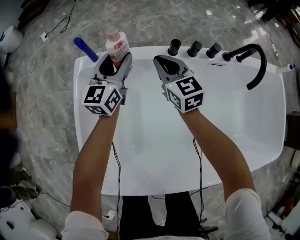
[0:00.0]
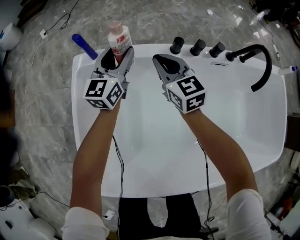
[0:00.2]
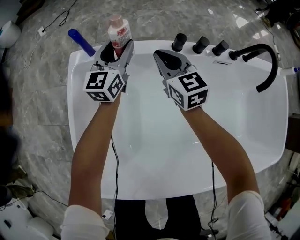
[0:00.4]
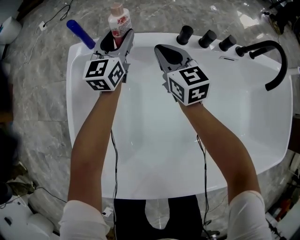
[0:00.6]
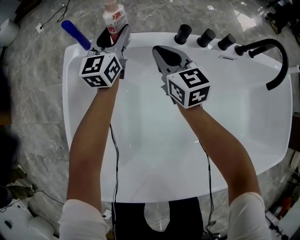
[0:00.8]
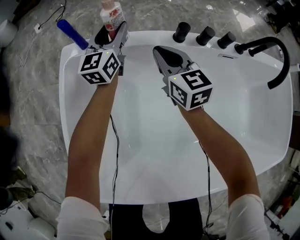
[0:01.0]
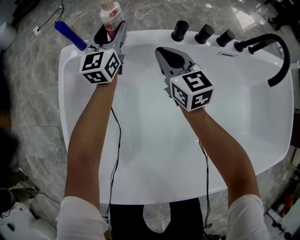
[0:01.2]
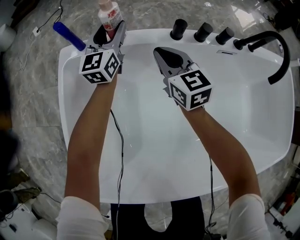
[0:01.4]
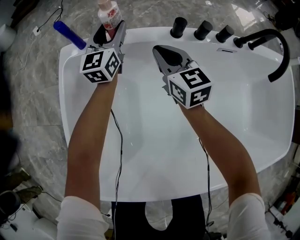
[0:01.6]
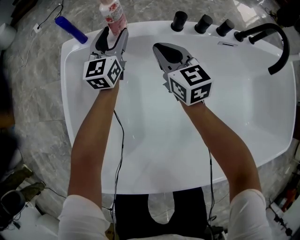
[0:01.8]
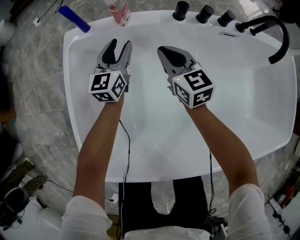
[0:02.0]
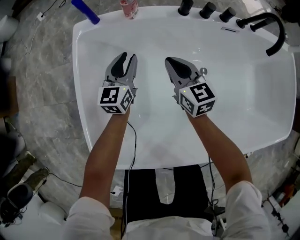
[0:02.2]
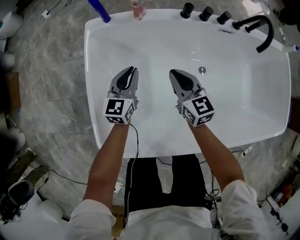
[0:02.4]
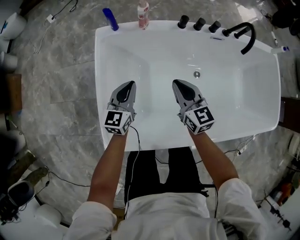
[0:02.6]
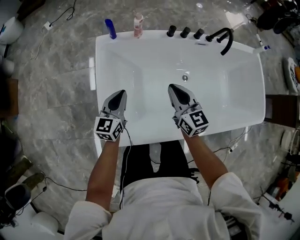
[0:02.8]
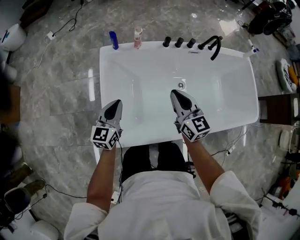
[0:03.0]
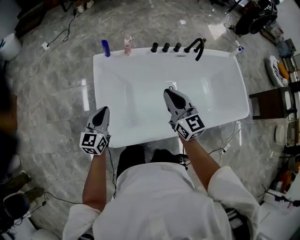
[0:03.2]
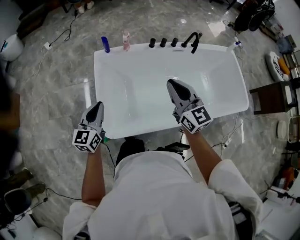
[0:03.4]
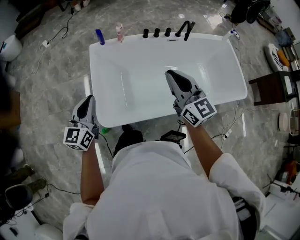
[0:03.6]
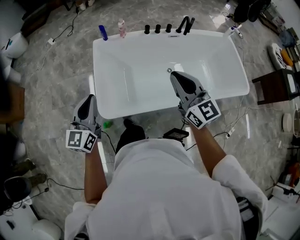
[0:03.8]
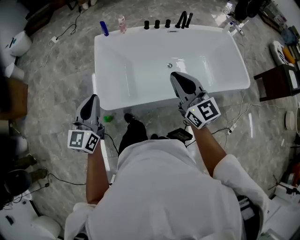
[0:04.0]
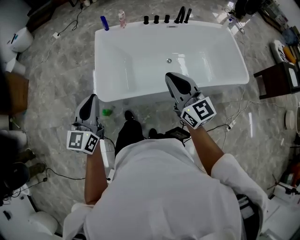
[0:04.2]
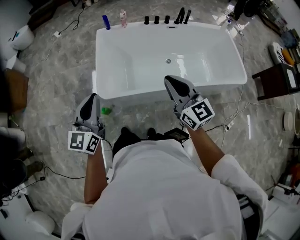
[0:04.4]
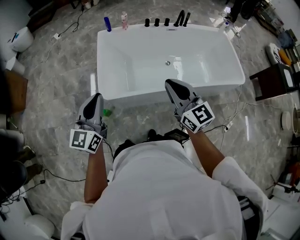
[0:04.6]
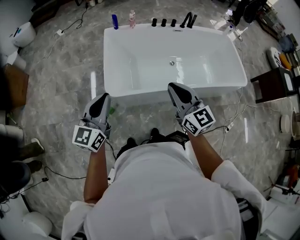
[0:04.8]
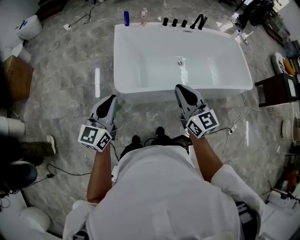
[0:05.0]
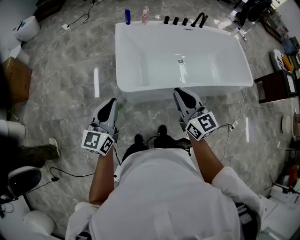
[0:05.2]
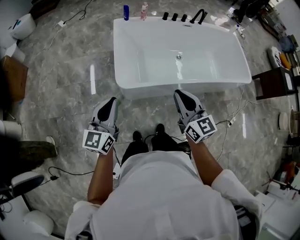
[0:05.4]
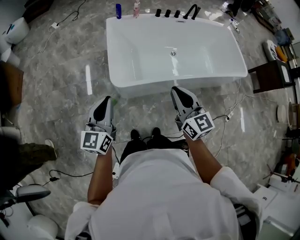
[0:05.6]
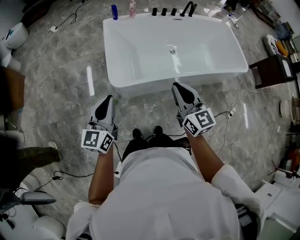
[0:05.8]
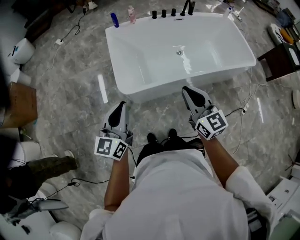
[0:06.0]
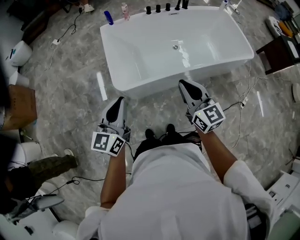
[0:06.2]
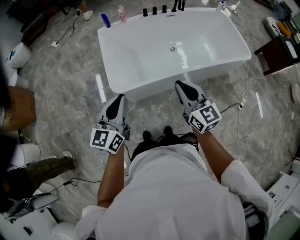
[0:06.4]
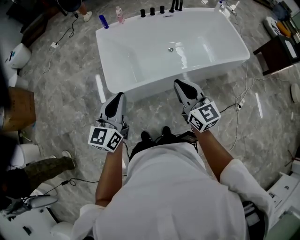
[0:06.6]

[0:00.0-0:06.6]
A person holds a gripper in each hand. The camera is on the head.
0:00.0 to 0:01.6: The right gripper goes approximately 5 cm downward. Meanwhile the left gripper goes roughly 10 cm forward and downward.
0:01.6 to 0:03.2: Both grippers travel together backward and upward, about 50 cm. The left gripper closes.
0:03.2 to 0:05.0: The two grippers go about 40 cm backward.
0:05.0 to 0:06.6: The grippers both shift to the right by roughly 10 cm.

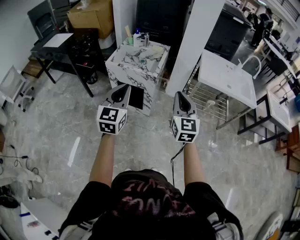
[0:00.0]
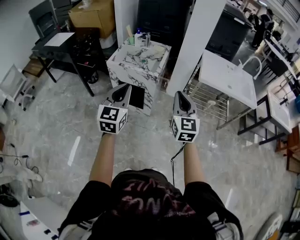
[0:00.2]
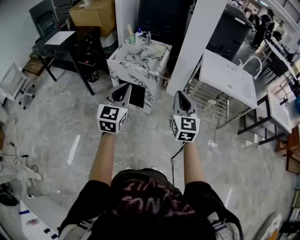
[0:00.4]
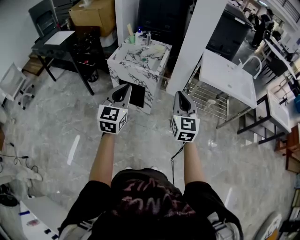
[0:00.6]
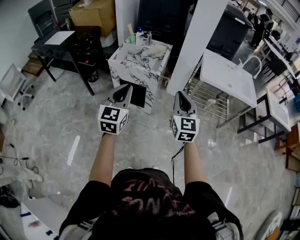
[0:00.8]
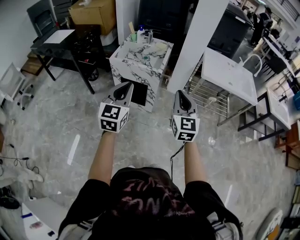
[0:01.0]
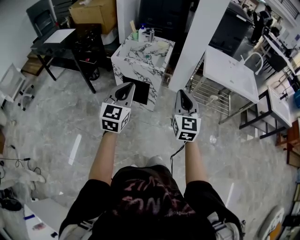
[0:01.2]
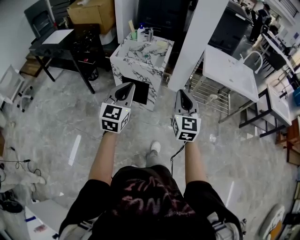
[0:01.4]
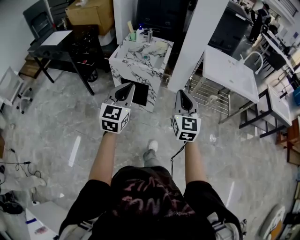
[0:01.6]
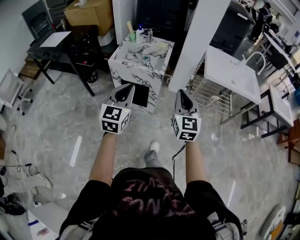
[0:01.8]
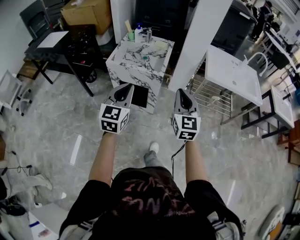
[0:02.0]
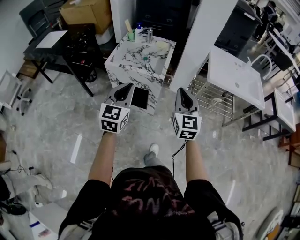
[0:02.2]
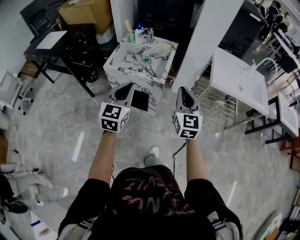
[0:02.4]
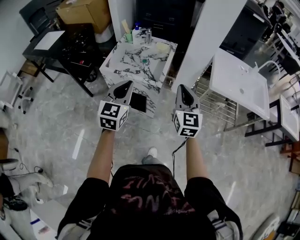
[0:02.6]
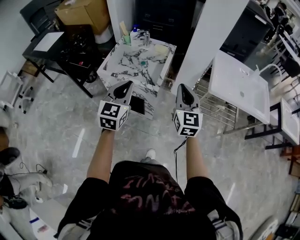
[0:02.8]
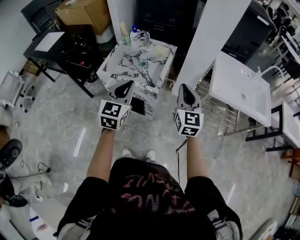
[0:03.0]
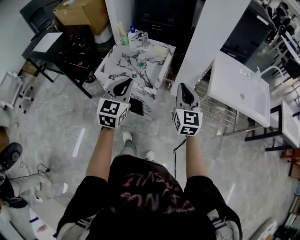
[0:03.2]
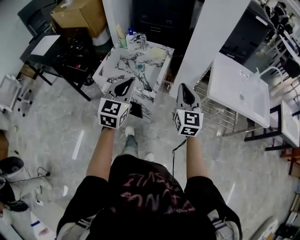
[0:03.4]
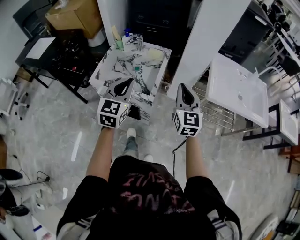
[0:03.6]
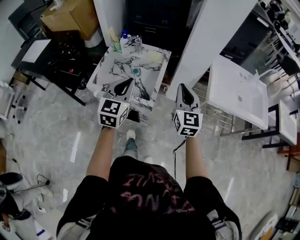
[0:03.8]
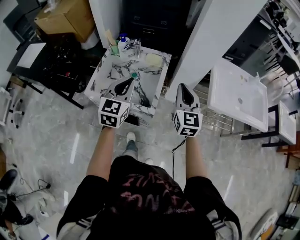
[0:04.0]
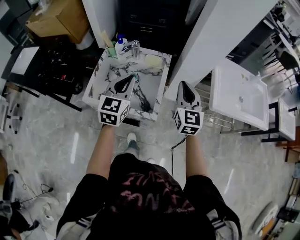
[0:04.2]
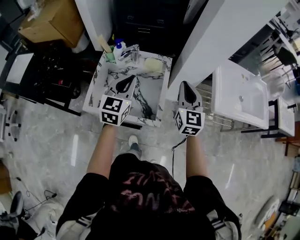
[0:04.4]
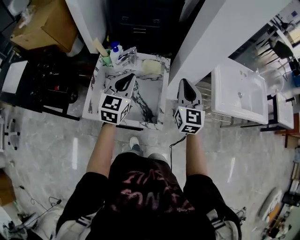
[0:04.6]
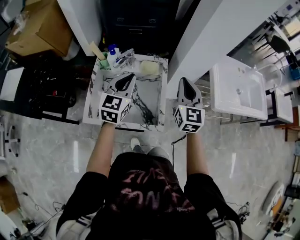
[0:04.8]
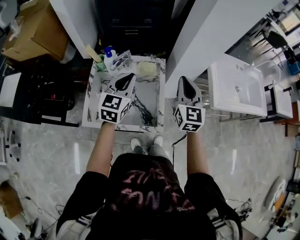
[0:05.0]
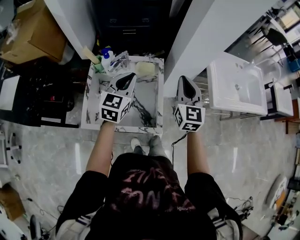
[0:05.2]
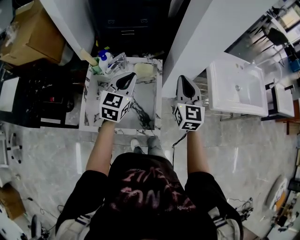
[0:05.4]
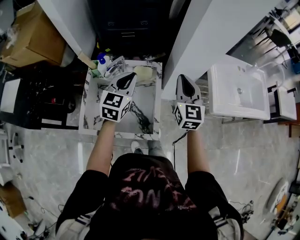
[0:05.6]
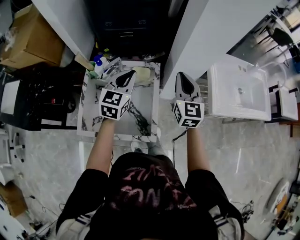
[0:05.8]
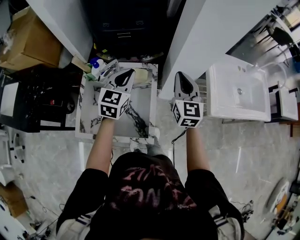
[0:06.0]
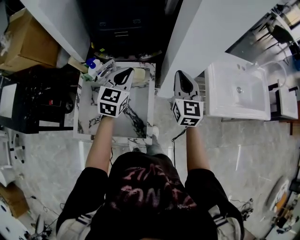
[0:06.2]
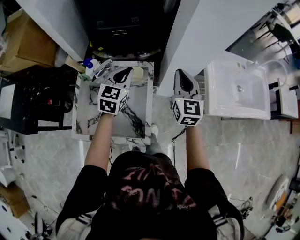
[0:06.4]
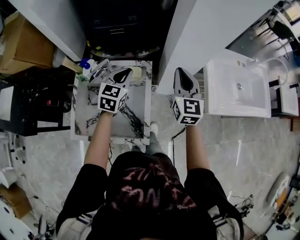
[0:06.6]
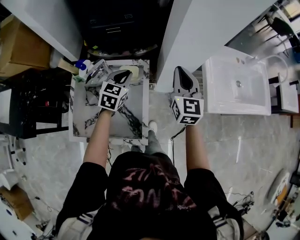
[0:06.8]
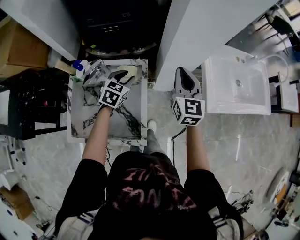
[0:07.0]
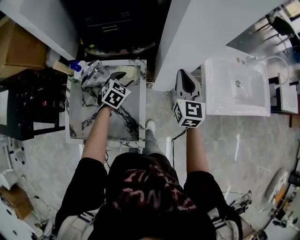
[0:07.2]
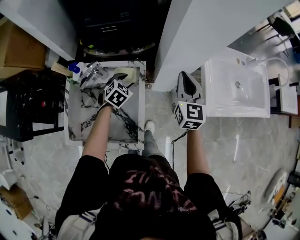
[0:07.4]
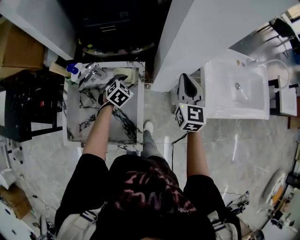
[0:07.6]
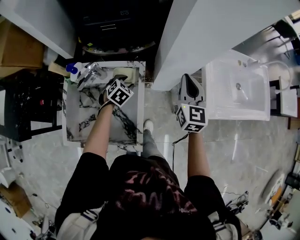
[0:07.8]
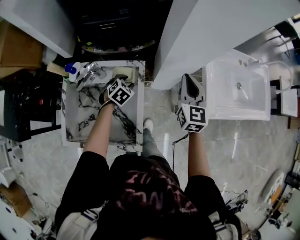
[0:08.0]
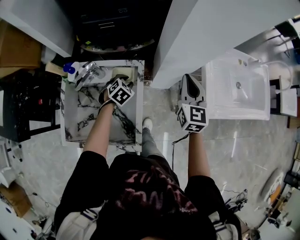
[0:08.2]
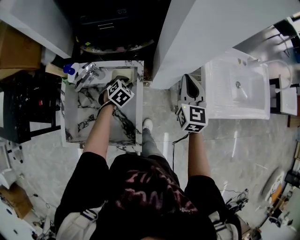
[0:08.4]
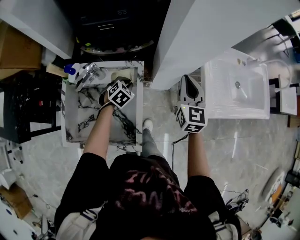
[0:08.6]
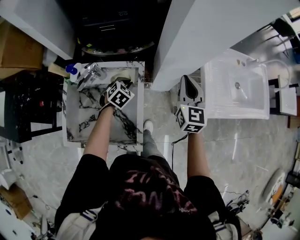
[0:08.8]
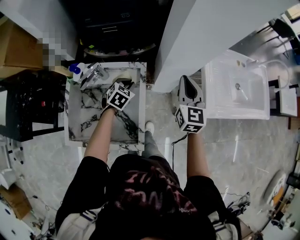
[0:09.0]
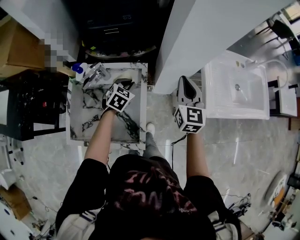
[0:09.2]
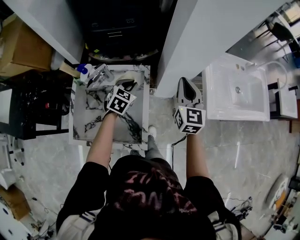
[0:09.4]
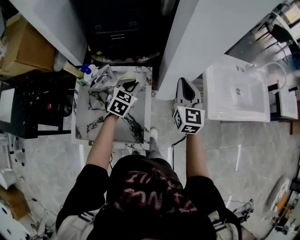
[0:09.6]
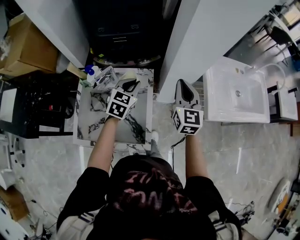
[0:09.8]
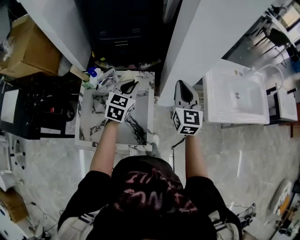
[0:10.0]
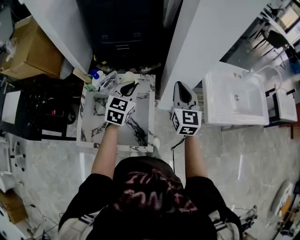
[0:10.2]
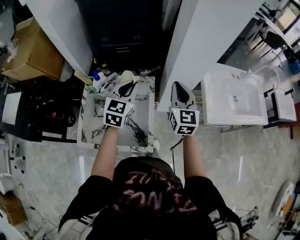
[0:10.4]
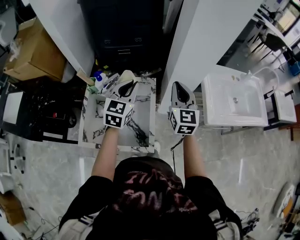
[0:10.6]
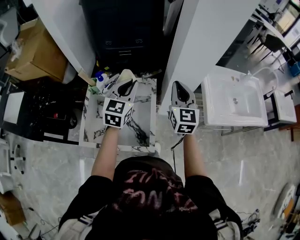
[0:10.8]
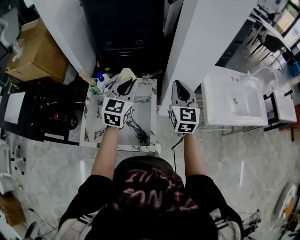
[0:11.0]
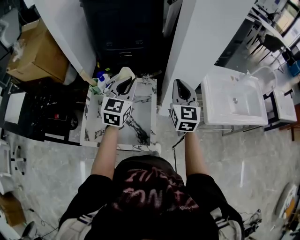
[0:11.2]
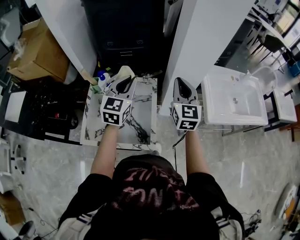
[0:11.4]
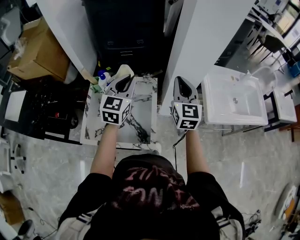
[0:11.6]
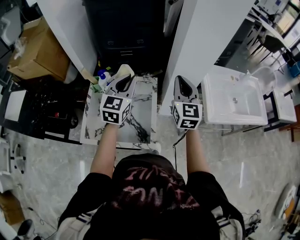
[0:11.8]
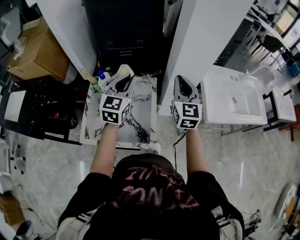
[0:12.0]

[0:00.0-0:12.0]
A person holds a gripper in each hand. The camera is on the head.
0:00.0 to 0:01.6: The left gripper moves approximately 5 cm; the right gripper goes roughly 5 cm to the left.
0:01.6 to 0:03.0: Both grippers move forward, approximately 30 cm.
0:03.0 to 0:04.4: The two grippers go some 25 cm forward.
0:04.4 to 0:06.0: Both grippers move forward, roughly 15 cm.
0:06.0 to 0:07.6: The left gripper heads downward, covering some 25 cm, points its fingers some 40 degrees further downward, and opens. Meanwhile the right gripper travels to the right, forward and downward by some 10 cm.
0:07.6 to 0:09.0: The left gripper closes.
0:09.0 to 0:10.4: The left gripper is displaced upward by roughly 25 cm, and angles its fingers upward, by approximately 30 degrees, while the right gripper moves upward, backward and to the left, roughly 10 cm.
0:10.4 to 0:12.0: The left gripper travels upward by approximately 5 cm. The right gripper ends up some 5 cm from where it was.

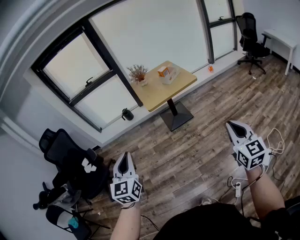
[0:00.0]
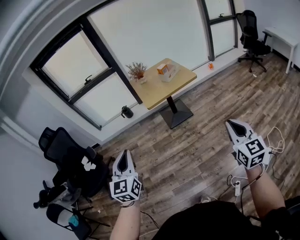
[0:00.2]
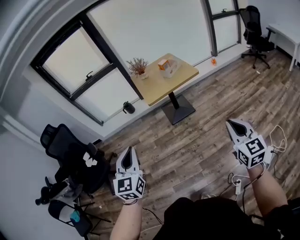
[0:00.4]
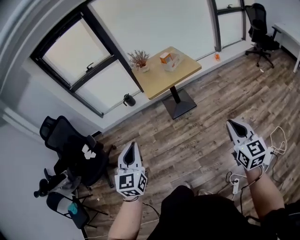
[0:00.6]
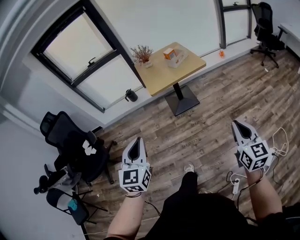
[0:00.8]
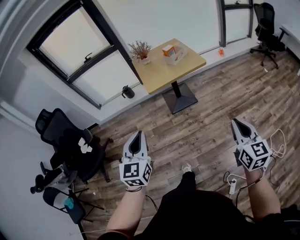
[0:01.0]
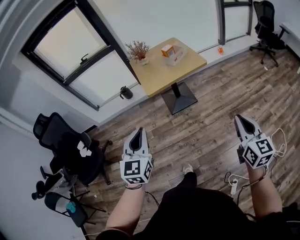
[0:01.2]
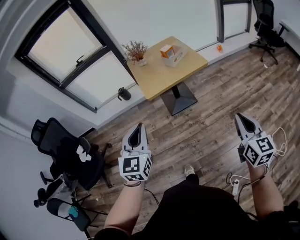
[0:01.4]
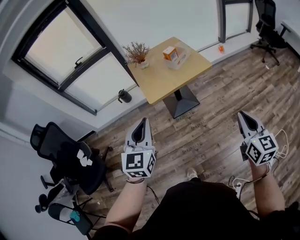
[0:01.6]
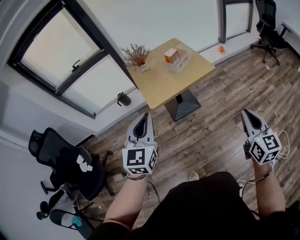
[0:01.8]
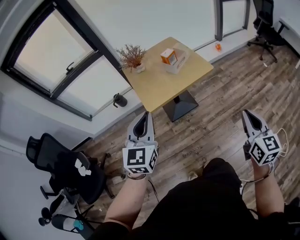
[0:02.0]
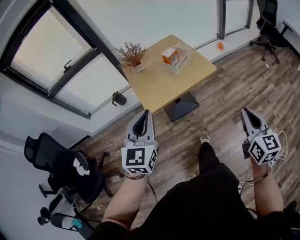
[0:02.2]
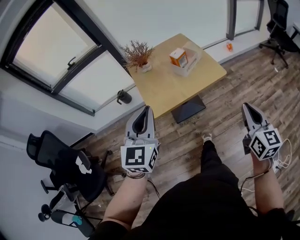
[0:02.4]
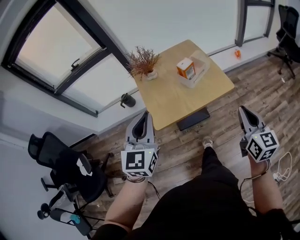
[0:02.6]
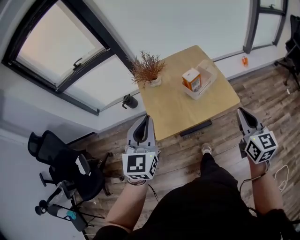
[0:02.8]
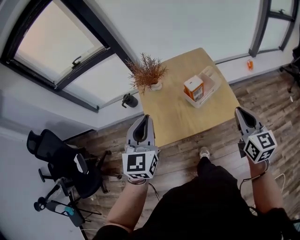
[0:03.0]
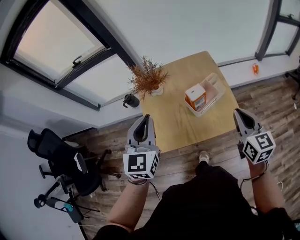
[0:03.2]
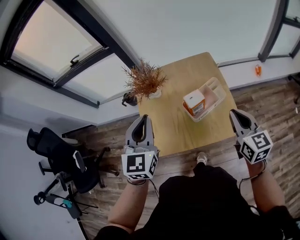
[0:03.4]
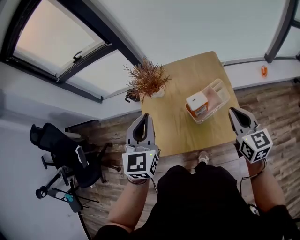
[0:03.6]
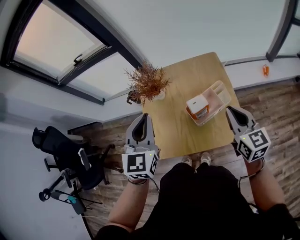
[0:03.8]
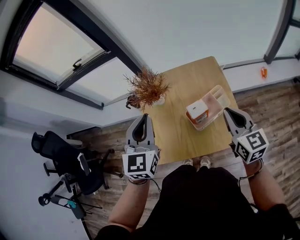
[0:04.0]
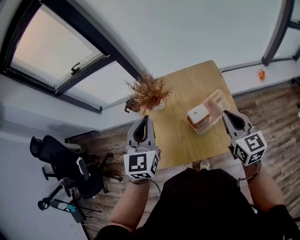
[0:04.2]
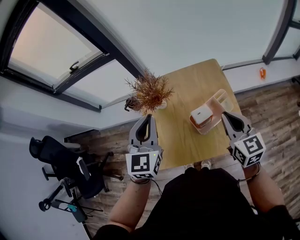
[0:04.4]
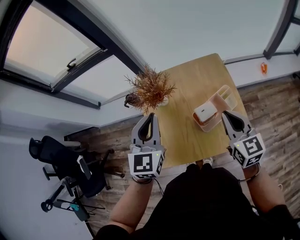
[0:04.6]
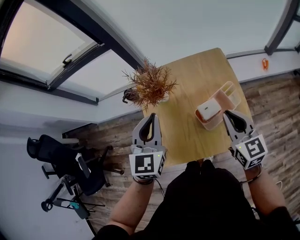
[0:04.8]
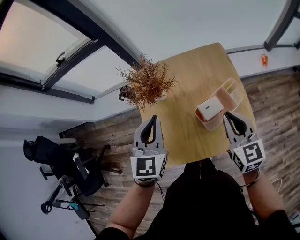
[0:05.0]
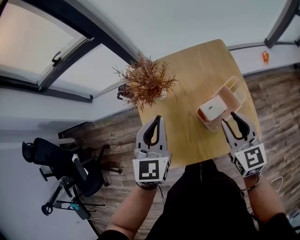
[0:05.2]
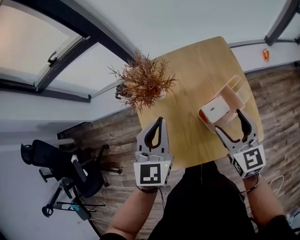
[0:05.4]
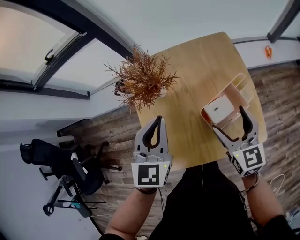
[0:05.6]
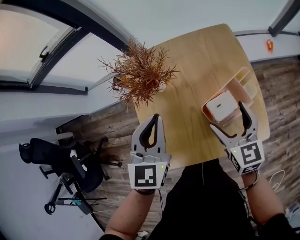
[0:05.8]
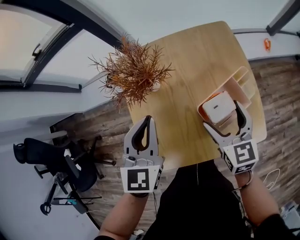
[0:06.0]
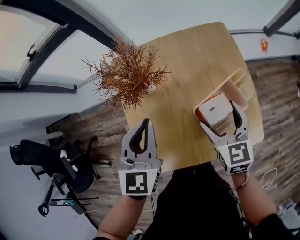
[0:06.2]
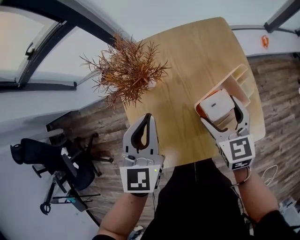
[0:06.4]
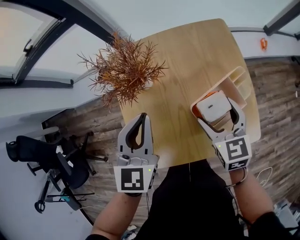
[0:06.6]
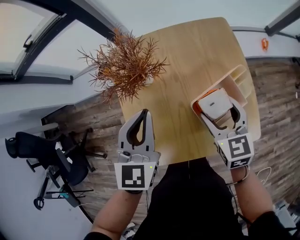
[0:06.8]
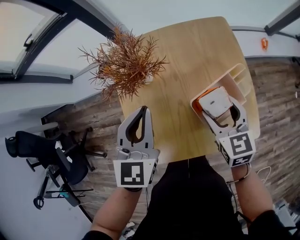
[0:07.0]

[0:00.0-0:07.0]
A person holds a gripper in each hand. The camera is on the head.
0:00.0 to 0:01.4: The right gripper heads forward, covering some 20 cm. Meanwhile the left gripper travels forward and to the right by about 25 cm.
0:01.4 to 0:02.8: Both grippers move forward, some 40 cm.
0:02.8 to 0:04.2: Both grippers travel together forward, roughly 25 cm.
0:04.2 to 0:05.6: The left gripper shifts about 15 cm downward, while the right gripper heads downward and to the left, covering about 15 cm, and opens.
0:05.6 to 0:07.0: The right gripper ends up roughly 5 cm from where it was.
